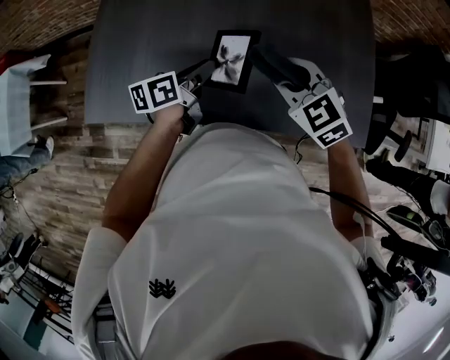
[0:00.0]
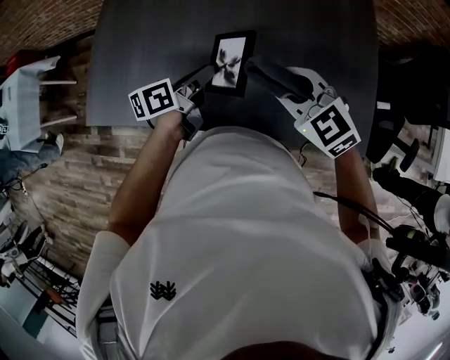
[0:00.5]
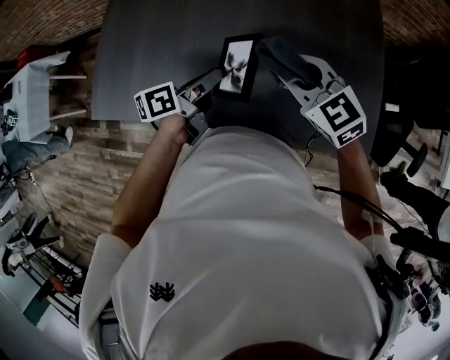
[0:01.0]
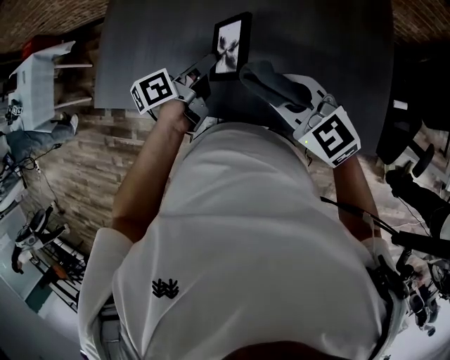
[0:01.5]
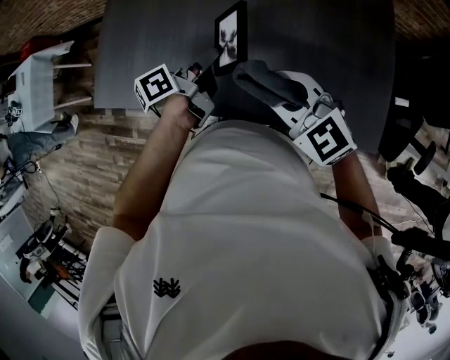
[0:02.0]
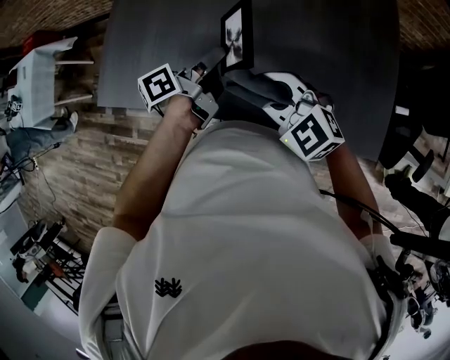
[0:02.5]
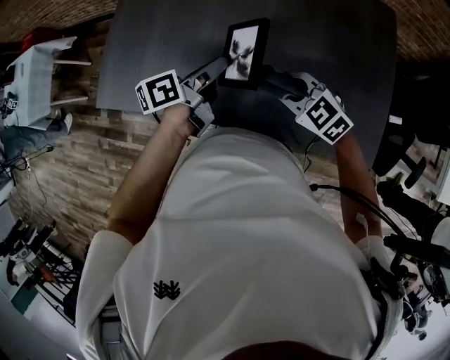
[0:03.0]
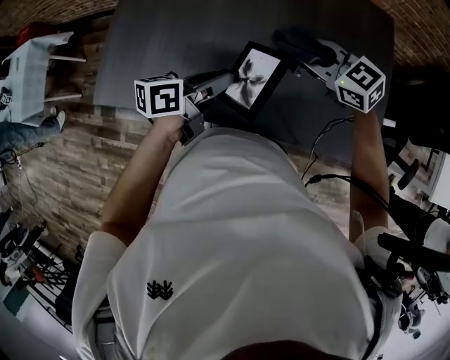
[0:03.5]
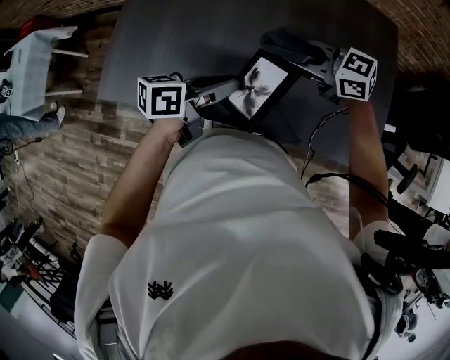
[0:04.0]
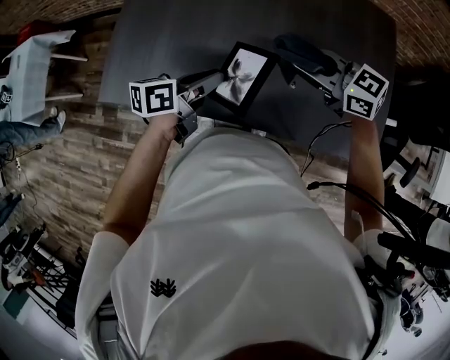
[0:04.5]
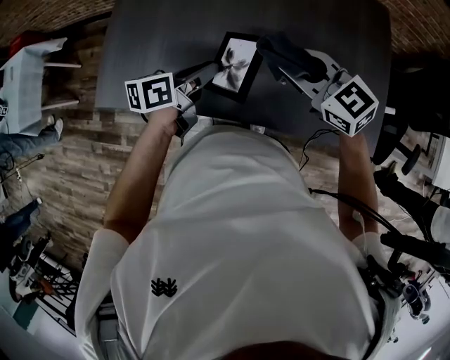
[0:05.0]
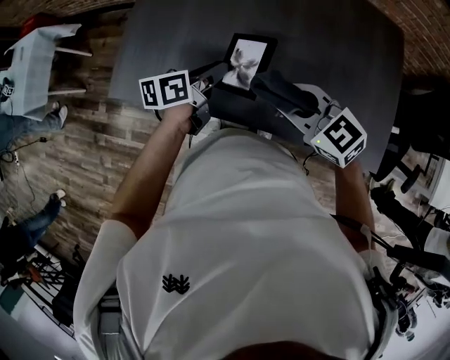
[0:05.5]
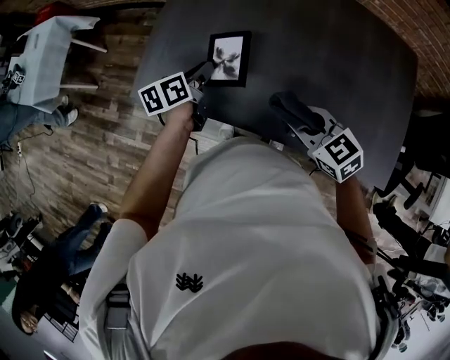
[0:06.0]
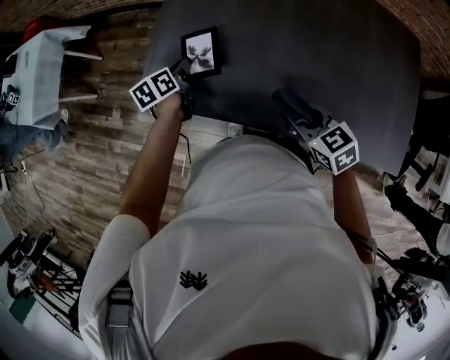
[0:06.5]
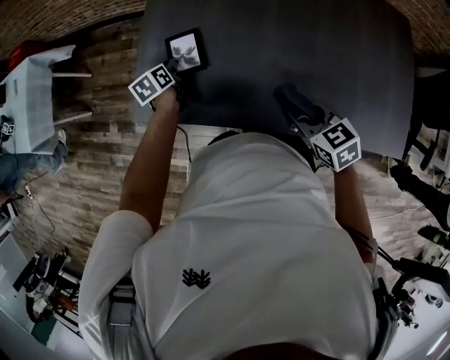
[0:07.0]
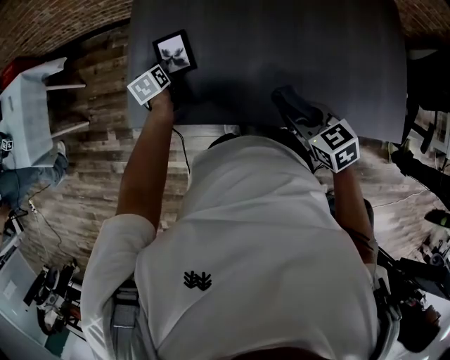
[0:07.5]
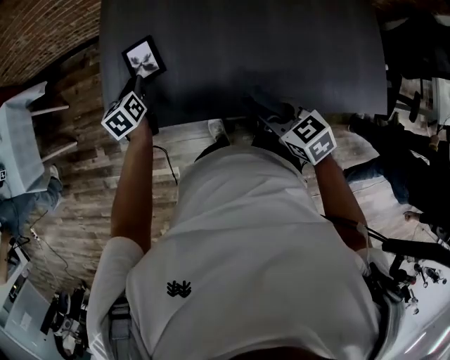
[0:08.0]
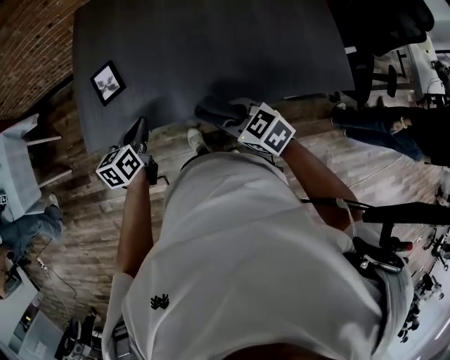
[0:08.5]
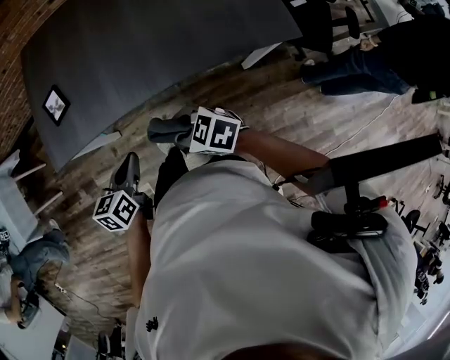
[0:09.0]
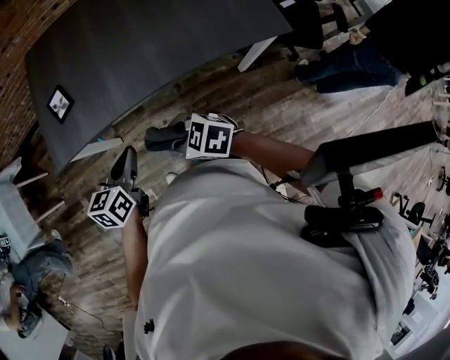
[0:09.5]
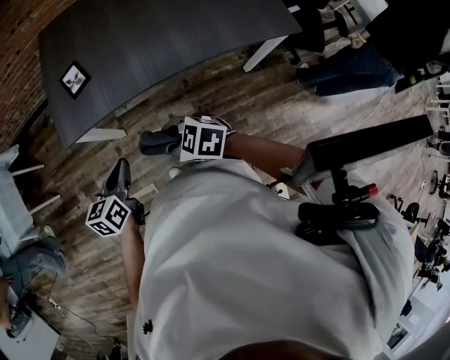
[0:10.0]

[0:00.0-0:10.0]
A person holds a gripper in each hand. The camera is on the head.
0:00.0 to 0:02.0: The right gripper is displaced to the right and backward by some 10 cm, and swivels approximately 20 degrees. Meanwhile the left gripper goes about 10 cm to the right, and turns by approximately 20 degrees.
0:02.0 to 0:04.0: The left gripper ends up some 10 cm from where it was, and swivels roughly 40 degrees. Meanwhile the right gripper travels downward and back again, roughly 10 cm each way, and turns by about 30 degrees.
0:04.0 to 0:06.0: The right gripper shifts by about 15 cm, and changes its angle by some 20 degrees. Meanwhile the left gripper moves roughly 30 cm, and turns by some 40 degrees.
0:06.0 to 0:08.0: The left gripper travels to the left, forward and downward by about 15 cm, and rotates roughly 30 degrees; the right gripper travels downward by roughly 5 cm, and swivels about 20 degrees.
0:08.0 to 0:10.0: The left gripper travels backward by about 40 cm, swivels roughly 30 degrees, and closes its fingers; the right gripper is displaced backward and to the left by approximately 30 cm.

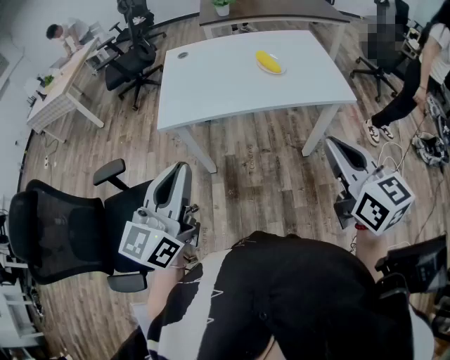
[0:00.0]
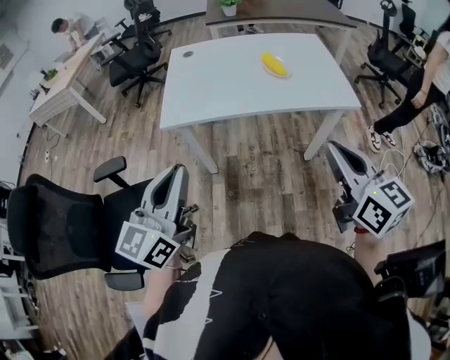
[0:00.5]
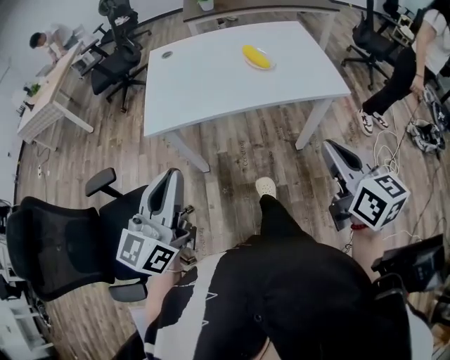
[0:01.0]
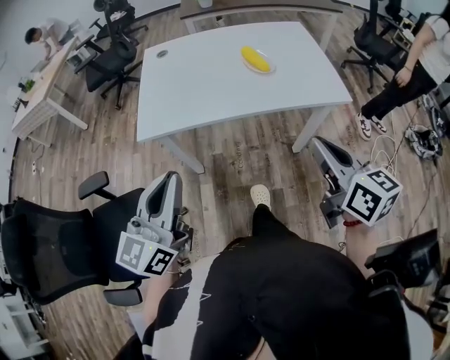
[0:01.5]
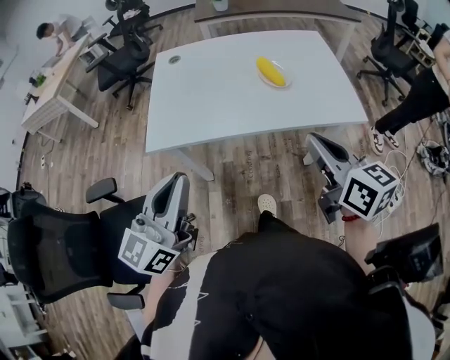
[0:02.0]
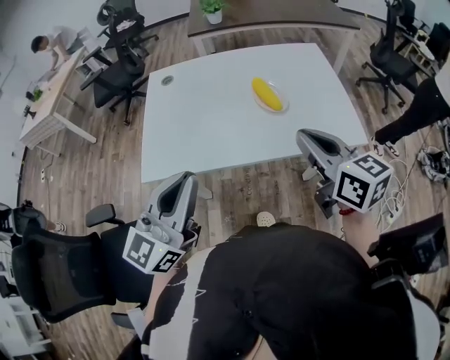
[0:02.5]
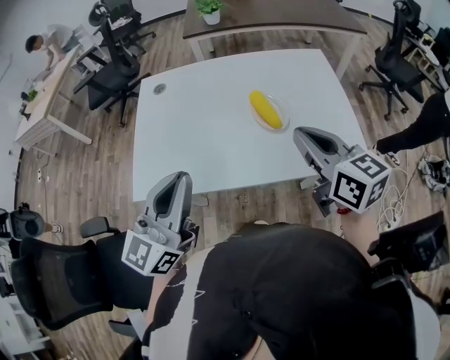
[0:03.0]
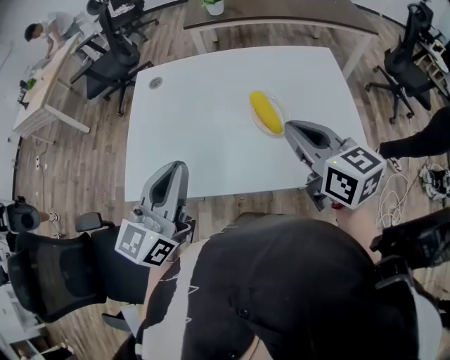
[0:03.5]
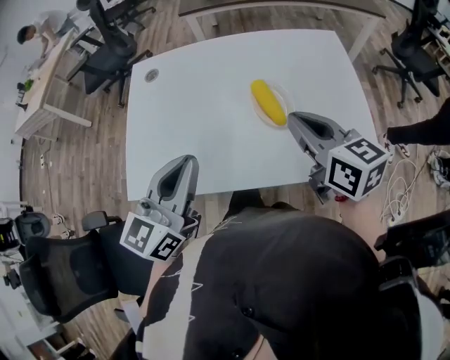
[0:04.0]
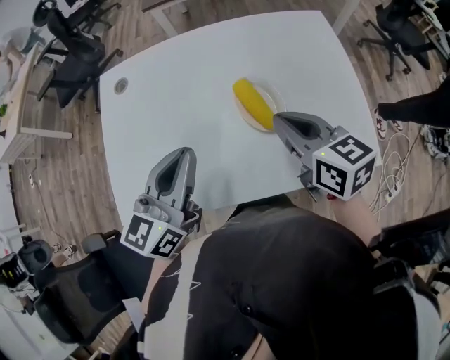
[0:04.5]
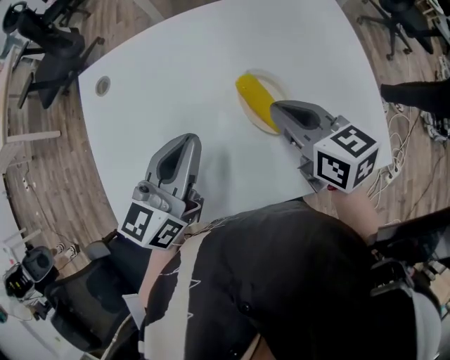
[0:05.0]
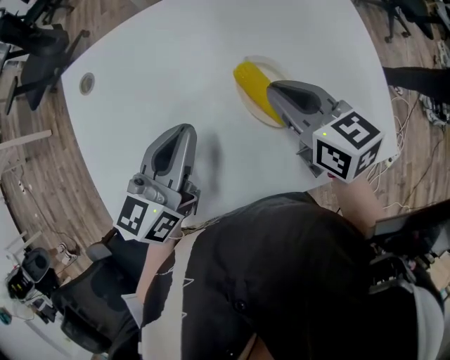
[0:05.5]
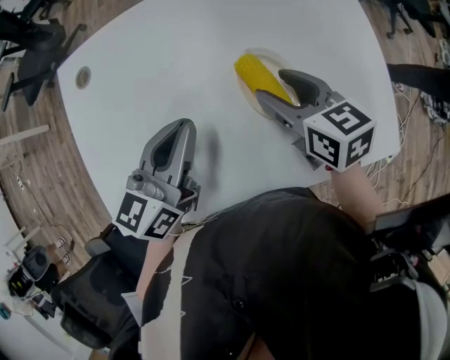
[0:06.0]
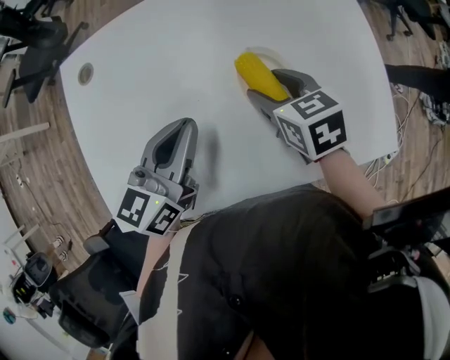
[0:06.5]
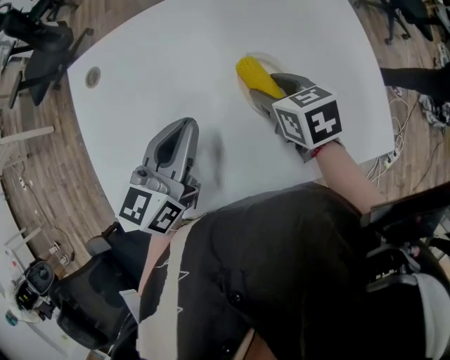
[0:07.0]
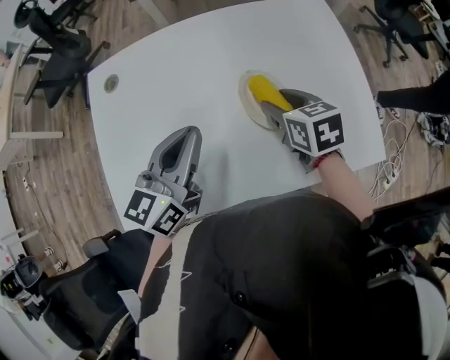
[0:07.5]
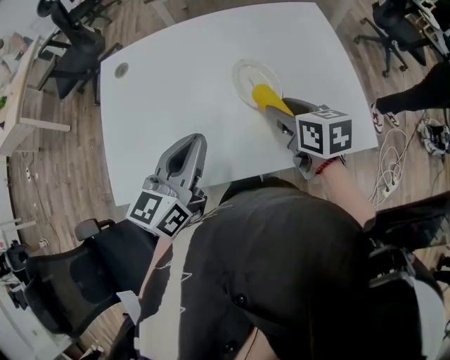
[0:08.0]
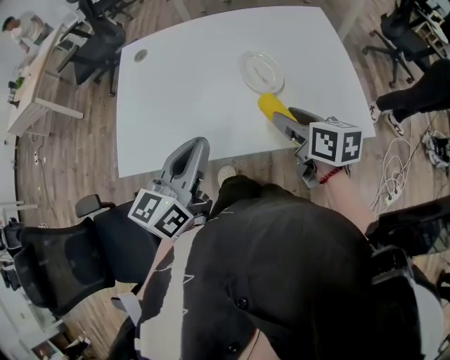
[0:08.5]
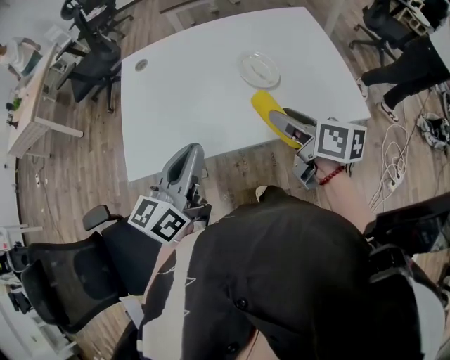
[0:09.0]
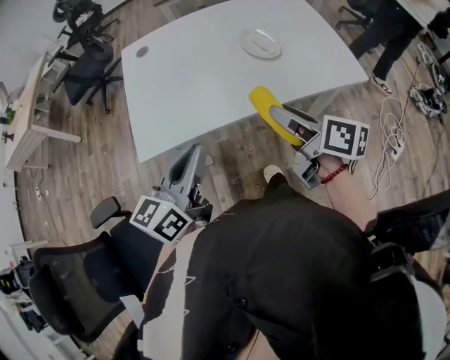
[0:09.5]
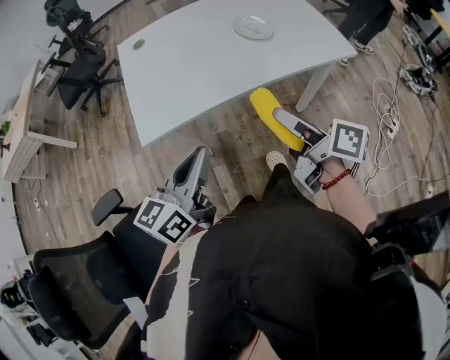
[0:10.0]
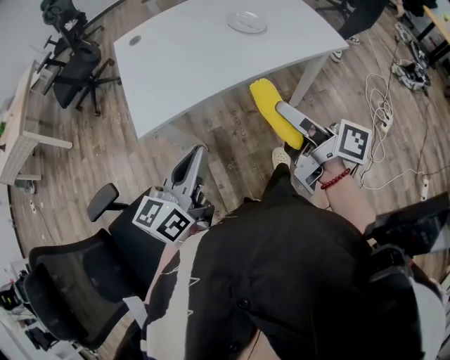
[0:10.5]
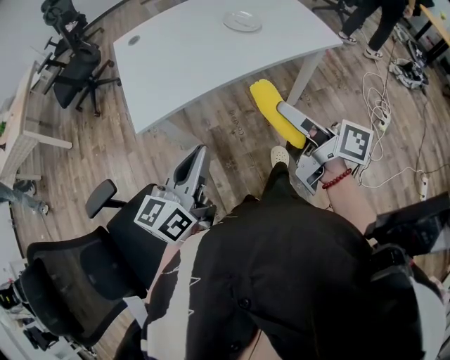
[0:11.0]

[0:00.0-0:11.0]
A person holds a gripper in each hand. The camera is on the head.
0:00.0 to 0:02.0: Both grippers move forward, roughly 15 cm.
0:02.0 to 0:03.5: Both grippers move forward, approximately 25 cm.
0:03.5 to 0:05.5: The right gripper goes roughly 25 cm downward and forward; the left gripper goes approximately 25 cm forward and downward, and rotates approximately 20 degrees.
0:05.5 to 0:07.5: The left gripper goes approximately 5 cm upward; the right gripper opens up.
0:07.5 to 0:09.0: The left gripper moves backward, roughly 25 cm. The right gripper moves backward and upward, some 25 cm, and swivels some 40 degrees.
0:09.0 to 0:11.0: Both grippers move backward, some 25 cm. The right gripper rotates roughly 30 degrees.

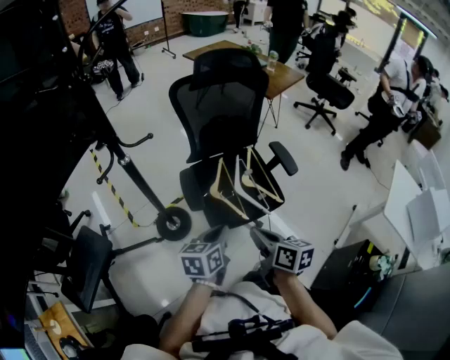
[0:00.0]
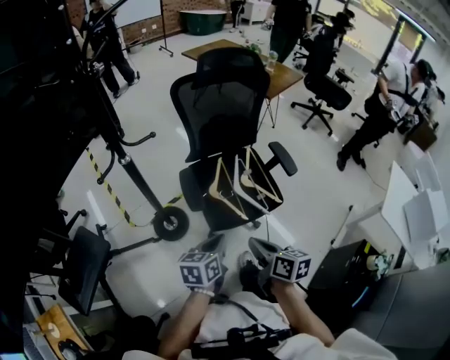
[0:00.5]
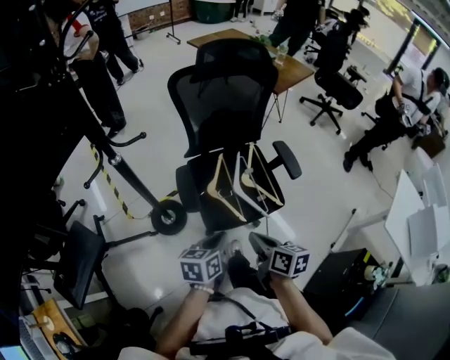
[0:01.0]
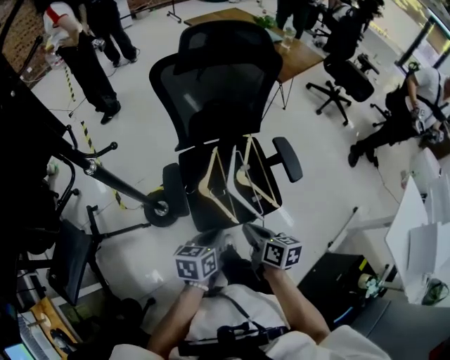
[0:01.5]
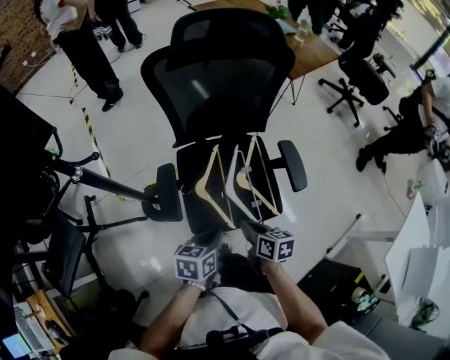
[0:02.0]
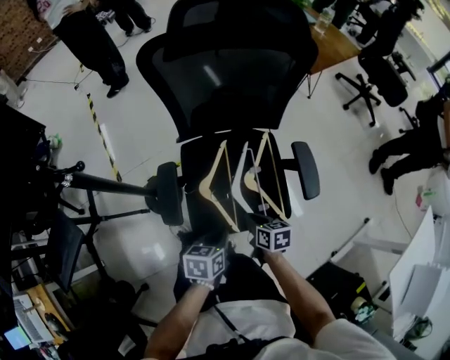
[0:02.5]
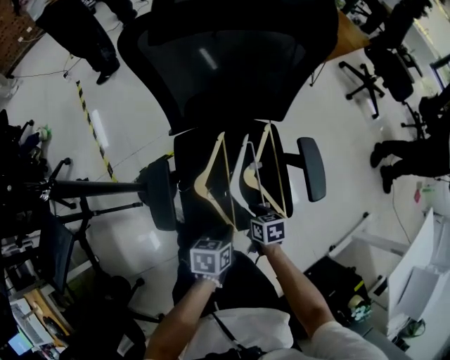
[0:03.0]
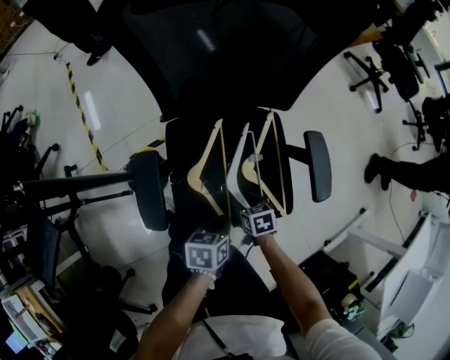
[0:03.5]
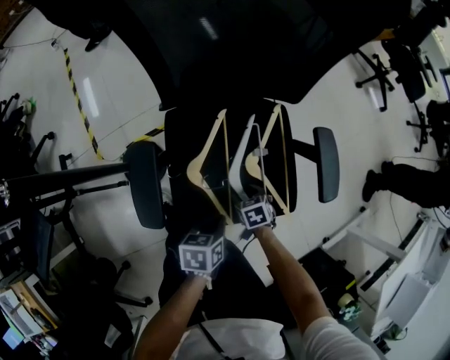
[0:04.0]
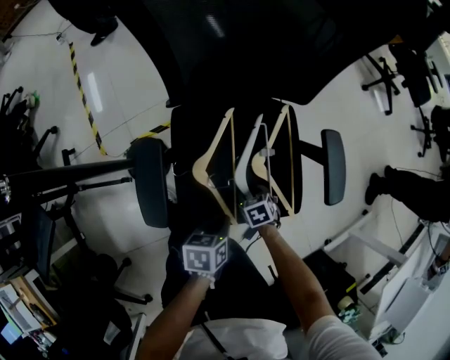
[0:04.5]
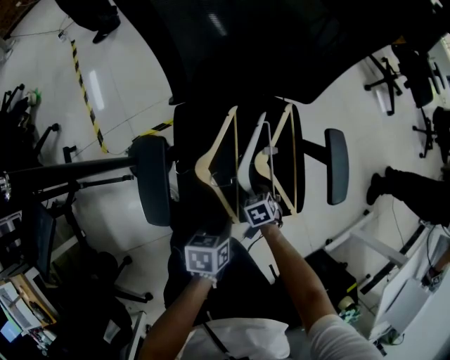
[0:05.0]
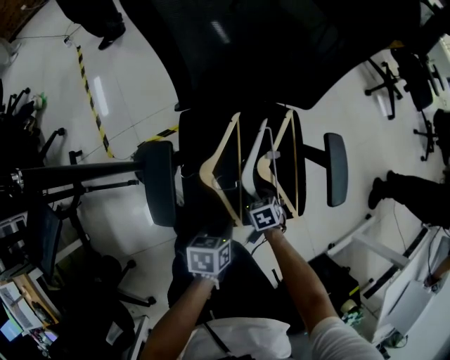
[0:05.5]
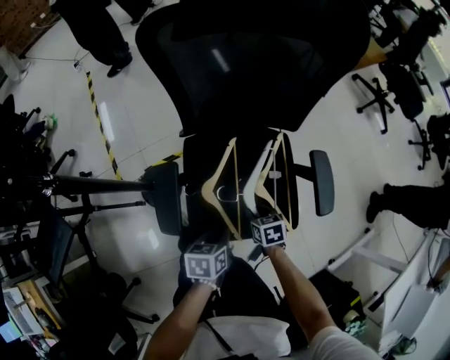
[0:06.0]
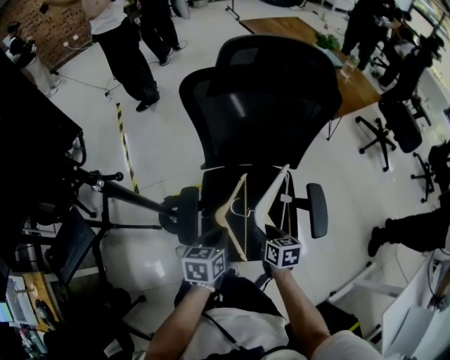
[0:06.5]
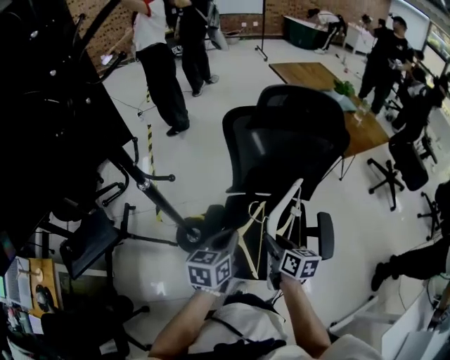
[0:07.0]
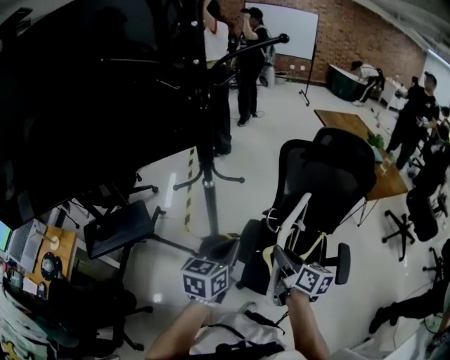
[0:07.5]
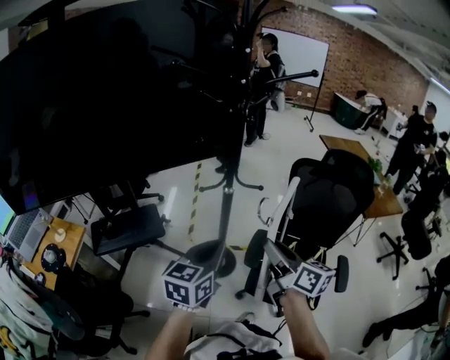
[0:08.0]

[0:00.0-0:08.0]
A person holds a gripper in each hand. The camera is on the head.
0:00.0 to 0:02.0: The left gripper moves forward, downward and to the right, some 20 cm, while the right gripper moves forward and downward, approximately 30 cm.
0:02.0 to 0:04.0: The left gripper moves downward, approximately 20 cm. The right gripper is displaced downward and forward by roughly 30 cm, turns by some 40 degrees, and opens.
0:04.0 to 0:06.0: The left gripper moves upward, approximately 5 cm, while the right gripper moves upward, roughly 10 cm, and closes its fingers.
0:06.0 to 0:08.0: The two grippers go about 50 cm upward. The right gripper tilts its fingers some 60 degrees upward. Meanwhile the left gripper angles its fingers upward, by approximately 40 degrees.
